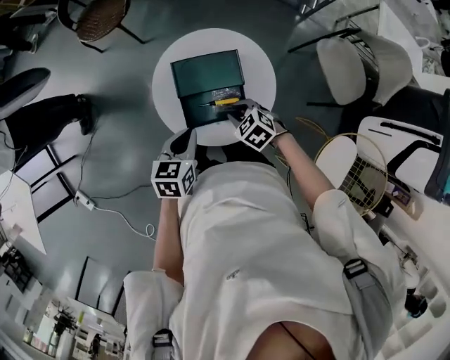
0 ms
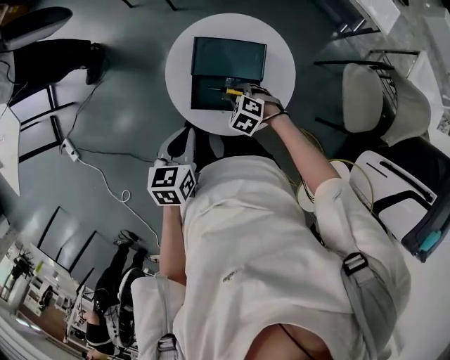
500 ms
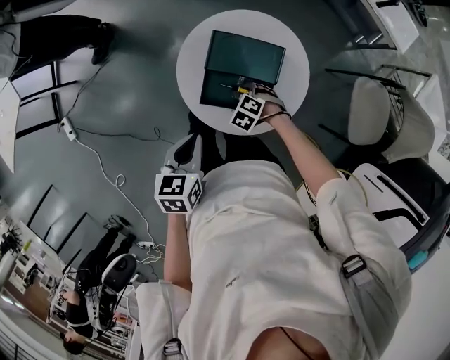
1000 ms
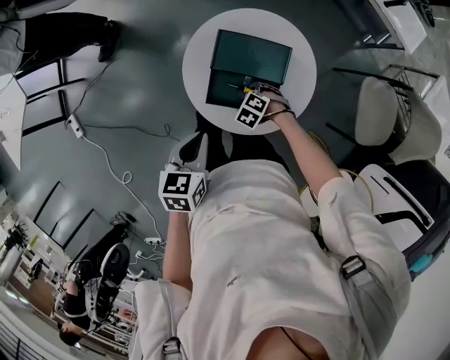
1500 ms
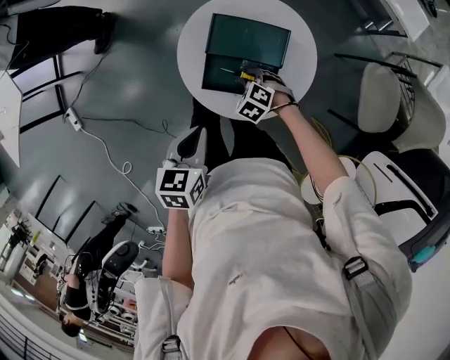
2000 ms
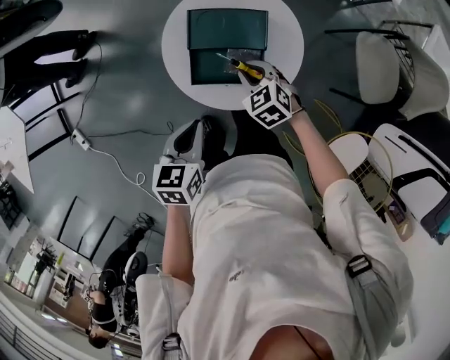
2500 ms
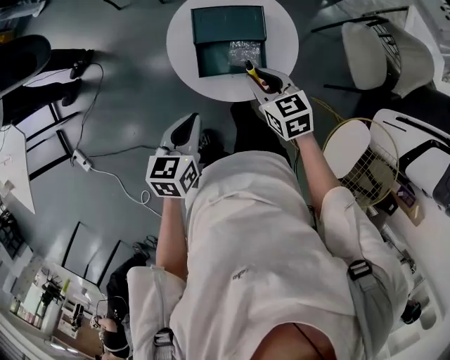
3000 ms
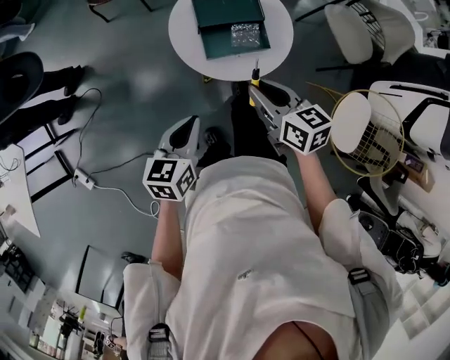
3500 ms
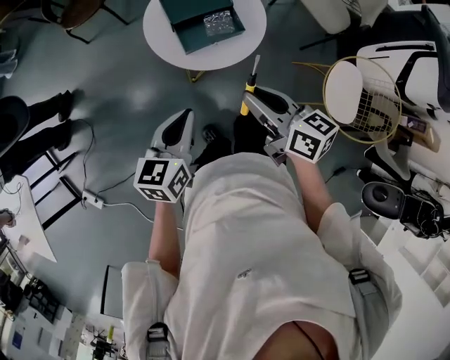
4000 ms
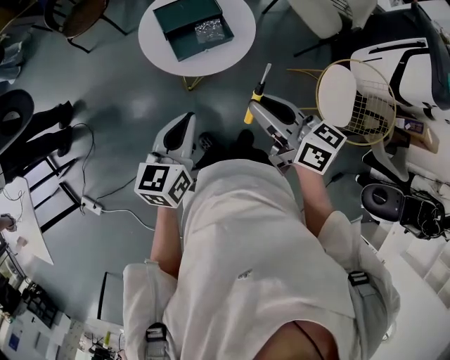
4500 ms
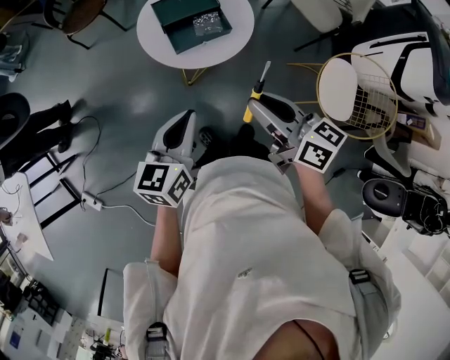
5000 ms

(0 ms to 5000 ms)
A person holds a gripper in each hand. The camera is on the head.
0 ms - 2500 ms: The left gripper shifts by about 10 cm; the right gripper goes downward and returns, some 15 cm each way.
2500 ms - 5000 ms: The left gripper goes about 20 cm backward and upward, and rotates approximately 40 degrees. The right gripper moves backward and upward, roughly 40 cm, and tips its fingers upward by about 40 degrees.

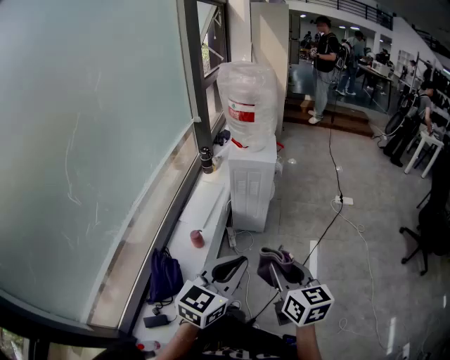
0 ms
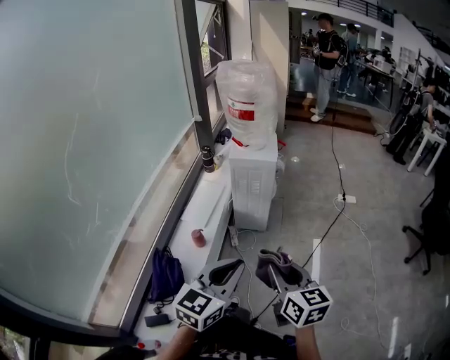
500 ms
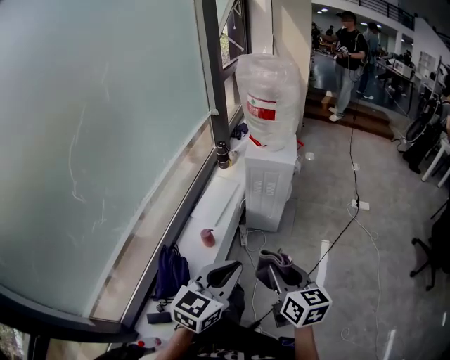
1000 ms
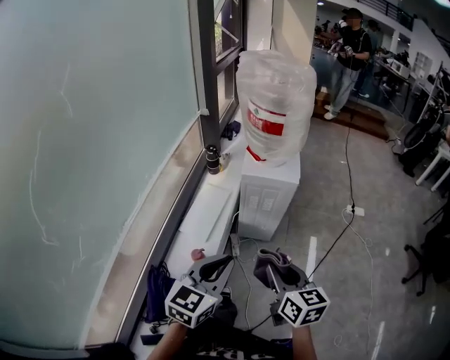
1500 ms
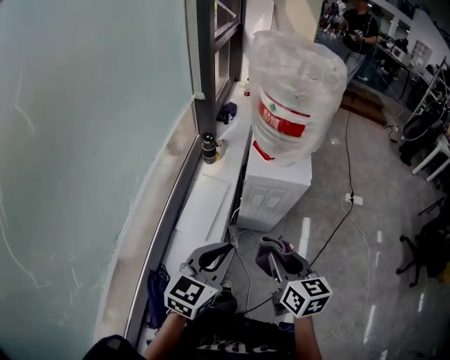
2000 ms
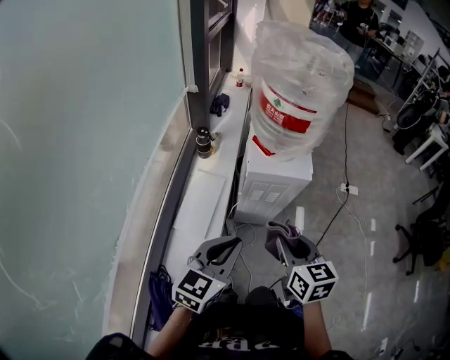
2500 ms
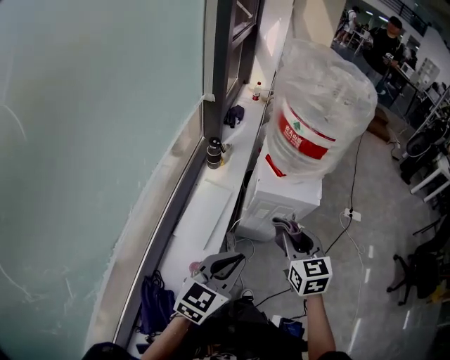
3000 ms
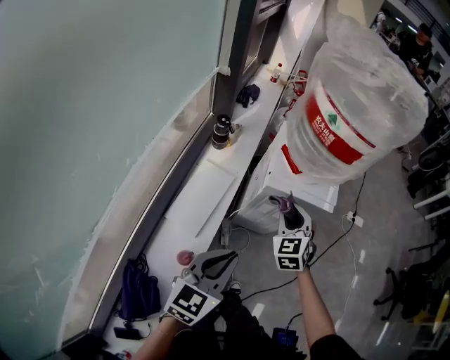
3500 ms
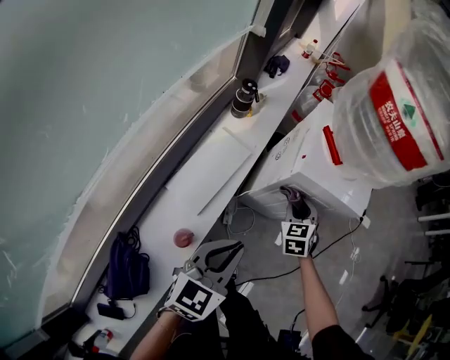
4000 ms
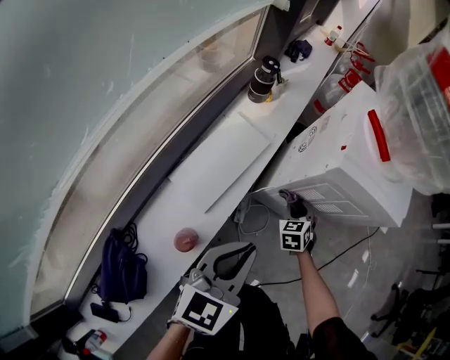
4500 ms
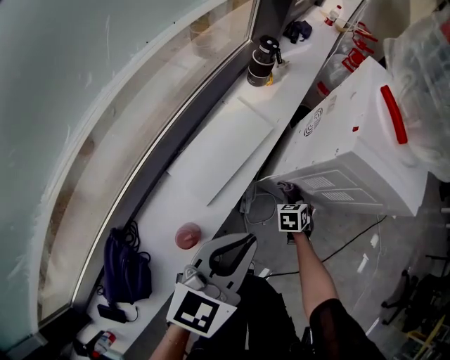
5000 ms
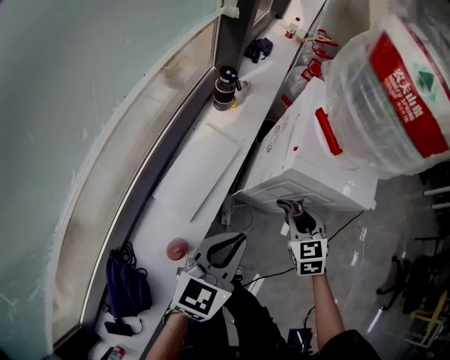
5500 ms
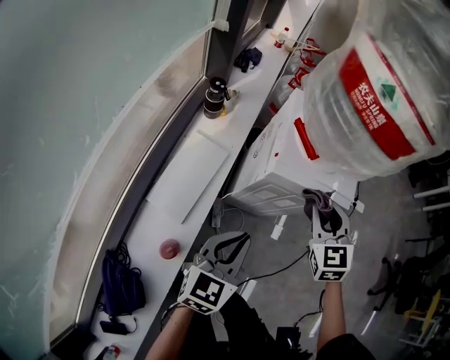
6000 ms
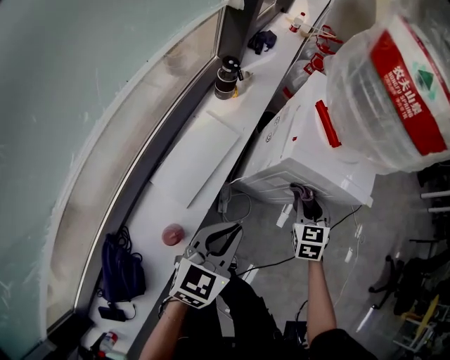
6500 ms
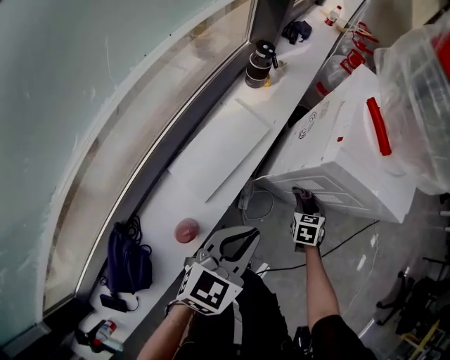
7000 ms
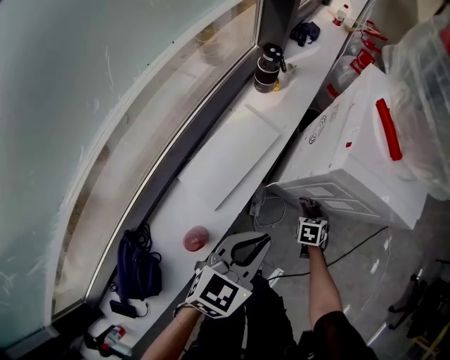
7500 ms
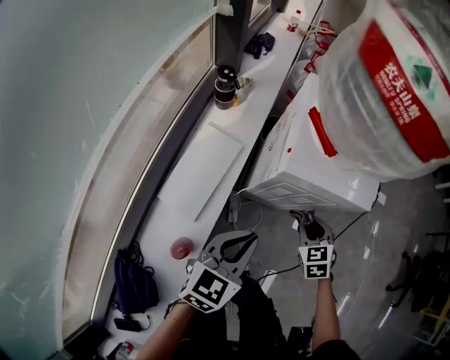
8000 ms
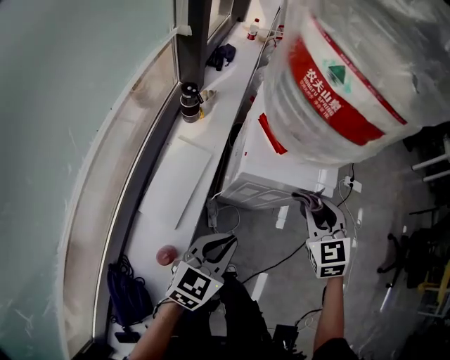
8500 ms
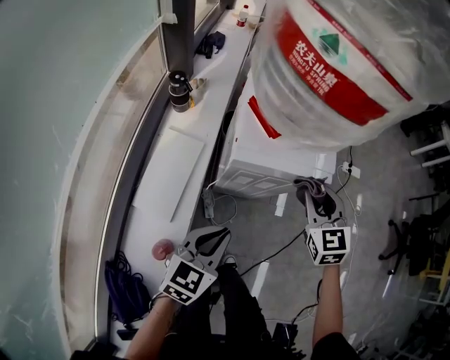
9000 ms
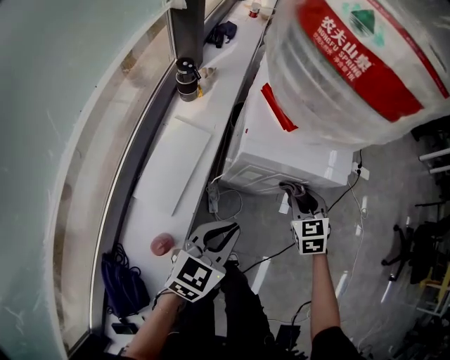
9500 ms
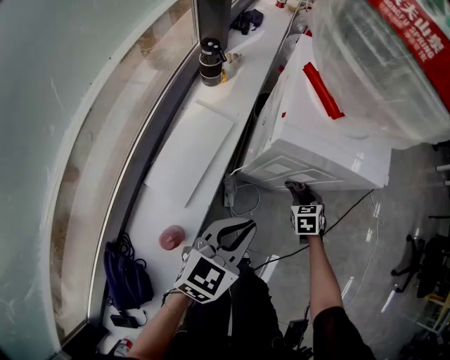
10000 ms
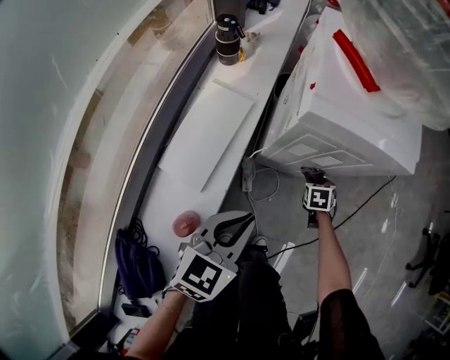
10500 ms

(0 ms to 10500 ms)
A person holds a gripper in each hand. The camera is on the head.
0 ms - 2000 ms: The two grippers go roughly 35 cm forward and to the left.
2000 ms - 4000 ms: The left gripper travels downward and forward by some 20 cm. The right gripper moves forward and downward, some 40 cm, and rotates around the line of its fingers by about 40 degrees, counterclockwise from behind.
4000 ms - 6500 ms: The left gripper moves up and down over some 10 cm, changing direction 2 times; the right gripper moves up and down over about 40 cm, changing direction 2 times.
6500 ms - 8500 ms: The right gripper moves upward, about 15 cm. Meanwhile the left gripper moves roughly 5 cm downward and comes back.
8500 ms - 10500 ms: The left gripper moves downward, approximately 10 cm. Meanwhile the right gripper goes roughly 40 cm downward, and rotates approximately 40 degrees.

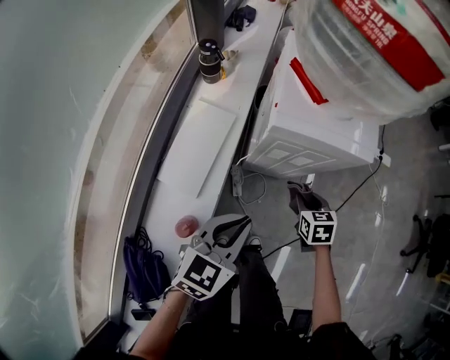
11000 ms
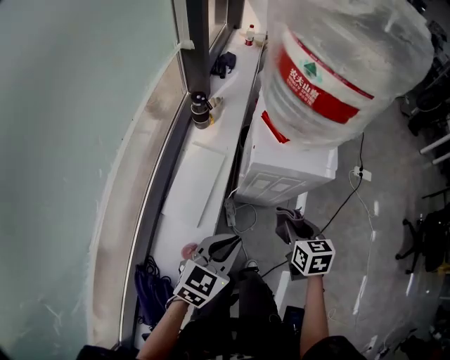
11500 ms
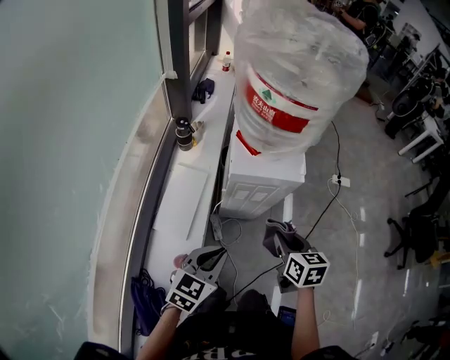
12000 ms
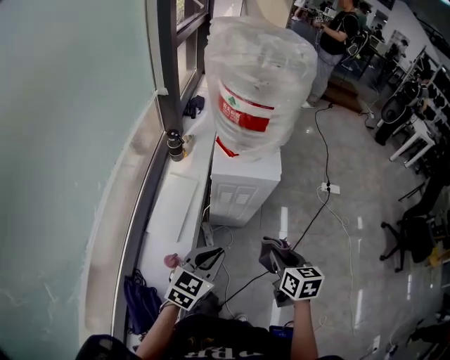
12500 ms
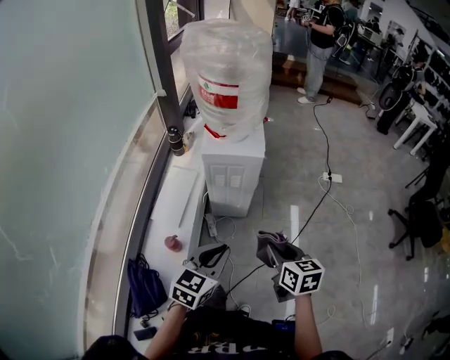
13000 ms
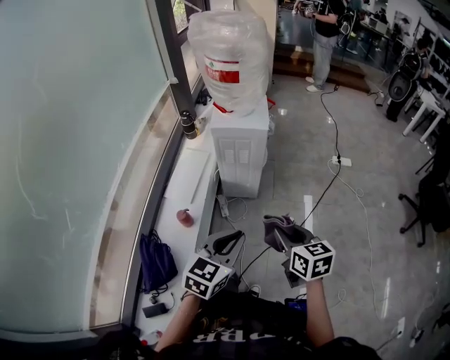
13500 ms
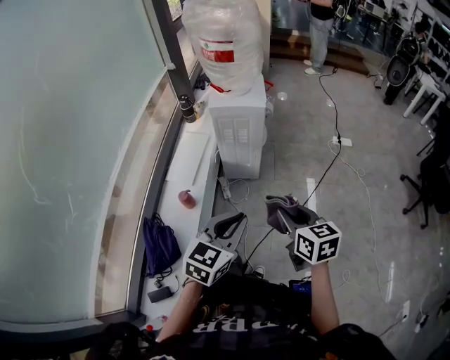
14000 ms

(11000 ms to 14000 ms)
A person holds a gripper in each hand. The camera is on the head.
11000 ms - 12500 ms: The right gripper is displaced upward and backward by approximately 35 cm, and rotates some 20 degrees. Meanwhile the left gripper travels upward and backward by roughly 20 cm.
12500 ms - 14000 ms: The right gripper heads backward, covering some 25 cm. Meanwhile the left gripper moves backward and to the right, about 30 cm.

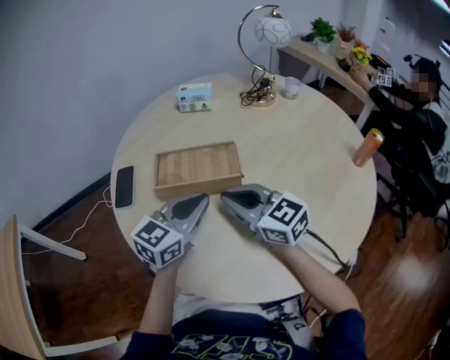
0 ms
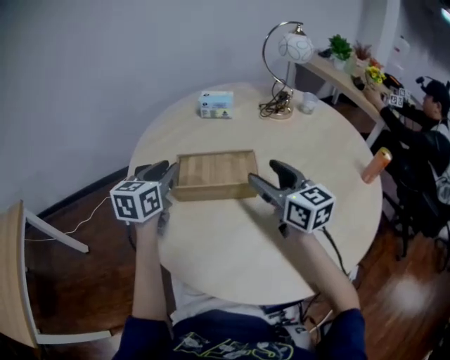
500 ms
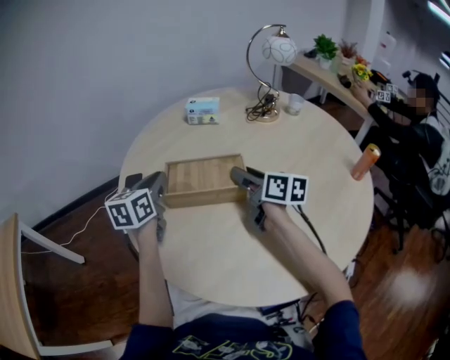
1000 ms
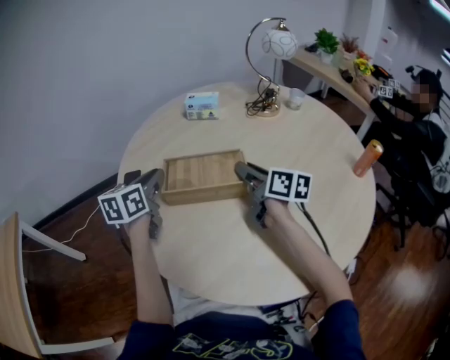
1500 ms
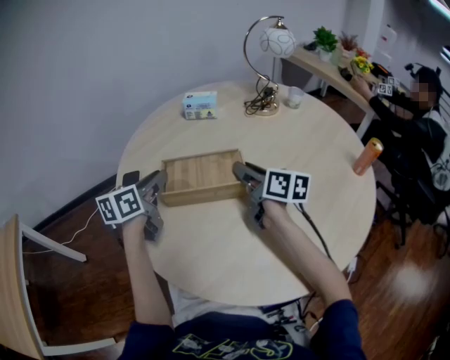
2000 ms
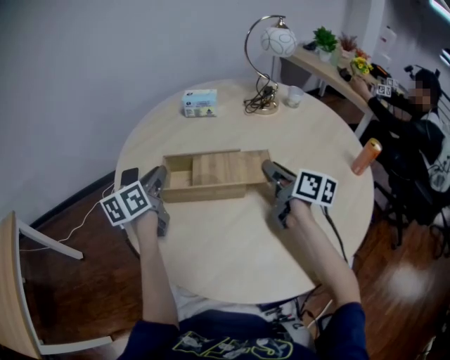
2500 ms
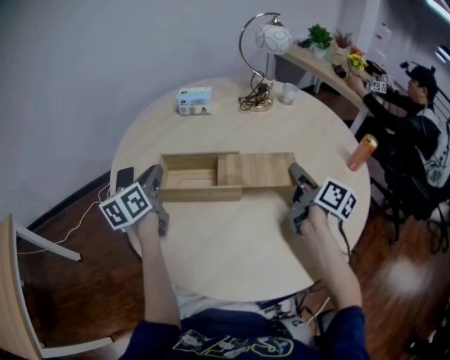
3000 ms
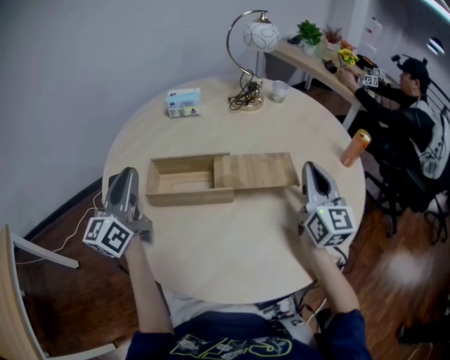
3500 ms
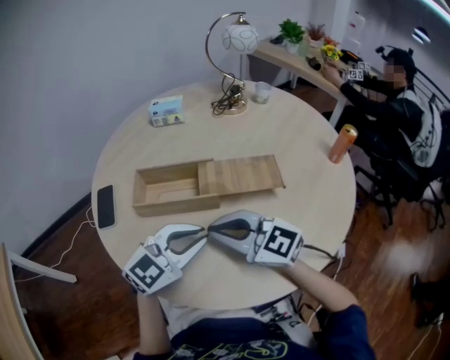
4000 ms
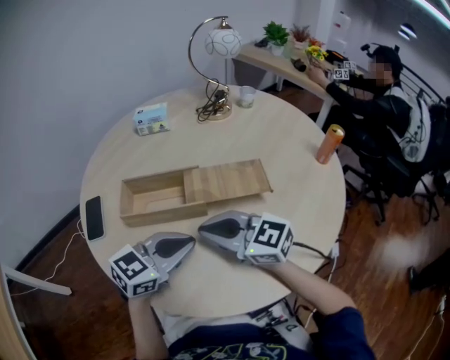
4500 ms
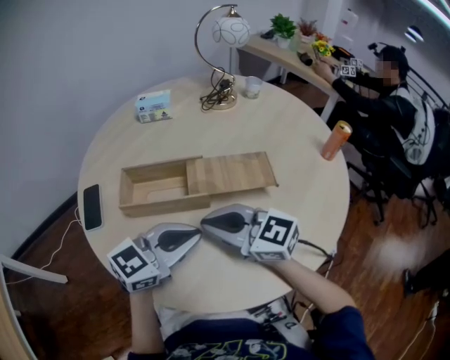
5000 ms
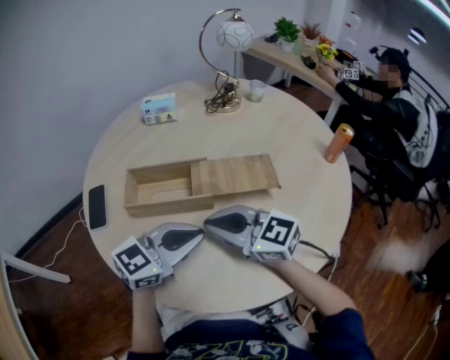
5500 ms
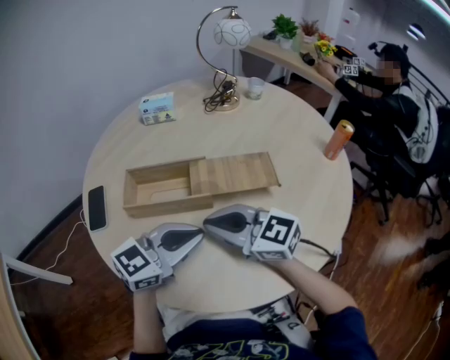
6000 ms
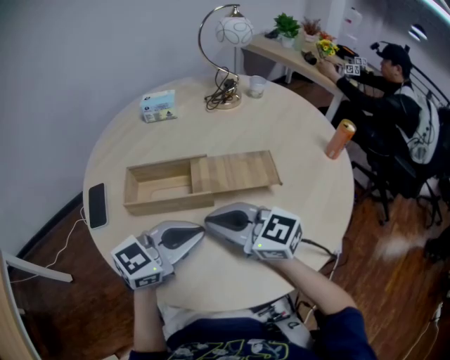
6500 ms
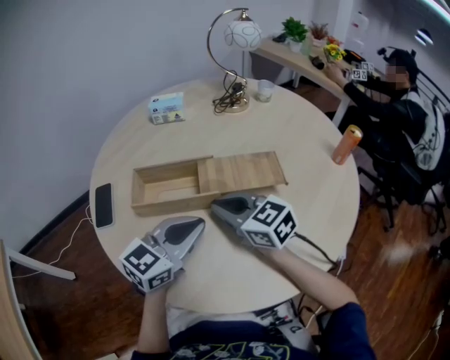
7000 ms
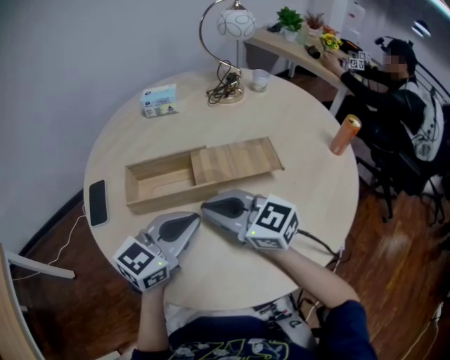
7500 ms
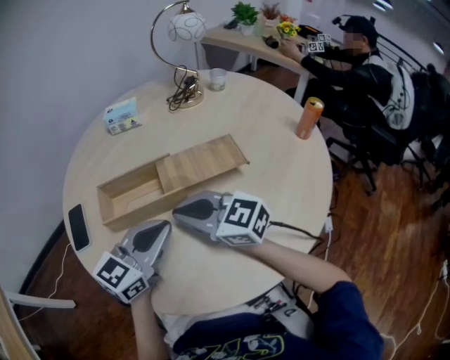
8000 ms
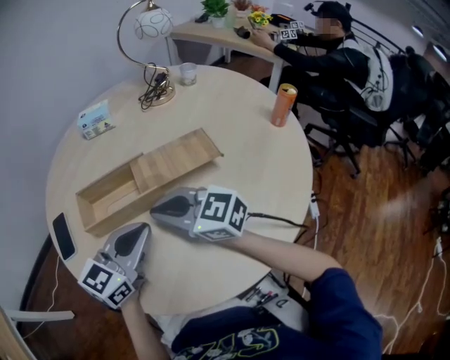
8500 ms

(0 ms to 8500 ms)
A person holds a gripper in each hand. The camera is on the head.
0 ms - 2000 ms: The left gripper shifts some 15 cm to the left and forward, and rotates about 40 degrees. The right gripper shifts approximately 10 cm forward and to the right, rotates around the line of its fingers by approximately 40 degrees, clockwise from behind, and opens up.
2000 ms - 4000 ms: The left gripper is displaced to the right and backward by about 25 cm, and twists approximately 50 degrees clockwise, seen from behind. Meanwhile the right gripper travels backward by some 20 cm, moves approximately 20 cm to the right and comes back, rotates around the line of its fingers by roughly 50 degrees, counterclockwise from behind, and closes up.
